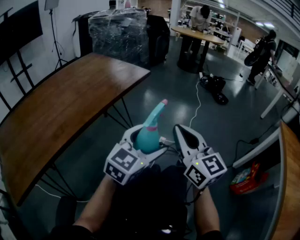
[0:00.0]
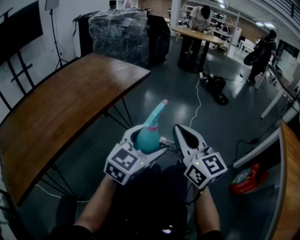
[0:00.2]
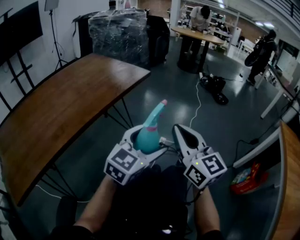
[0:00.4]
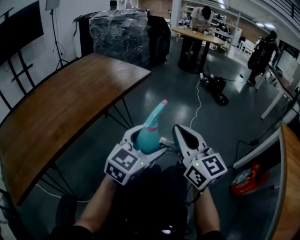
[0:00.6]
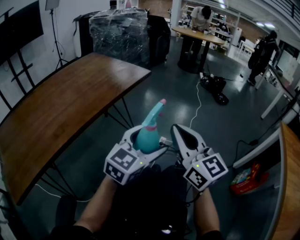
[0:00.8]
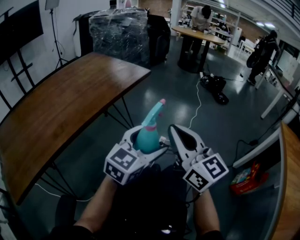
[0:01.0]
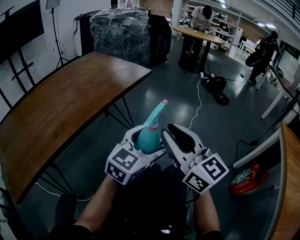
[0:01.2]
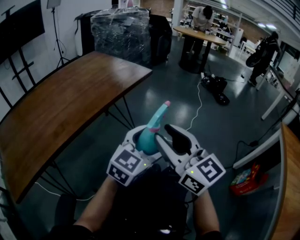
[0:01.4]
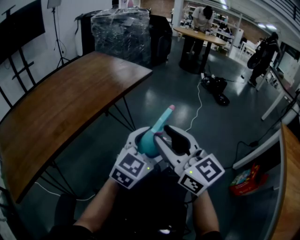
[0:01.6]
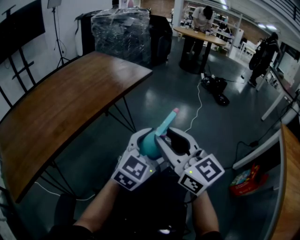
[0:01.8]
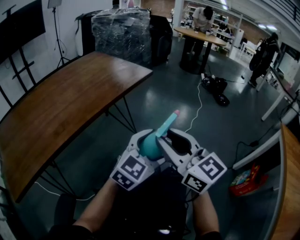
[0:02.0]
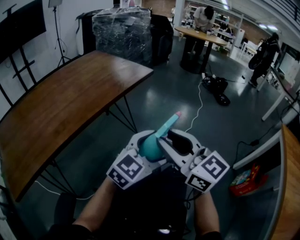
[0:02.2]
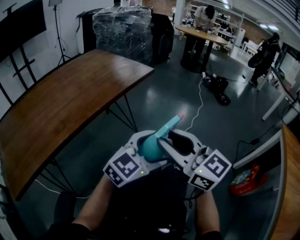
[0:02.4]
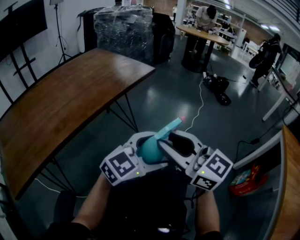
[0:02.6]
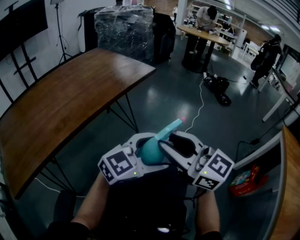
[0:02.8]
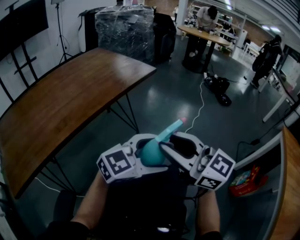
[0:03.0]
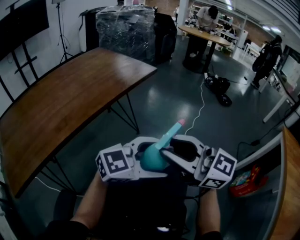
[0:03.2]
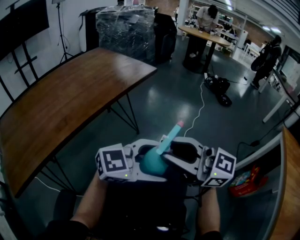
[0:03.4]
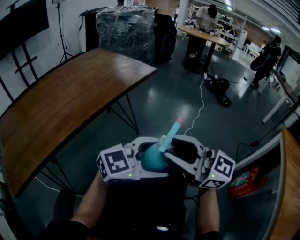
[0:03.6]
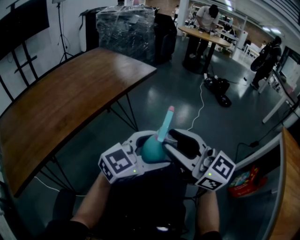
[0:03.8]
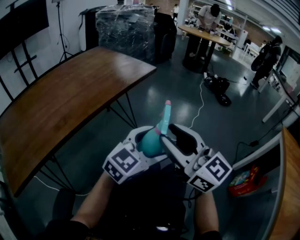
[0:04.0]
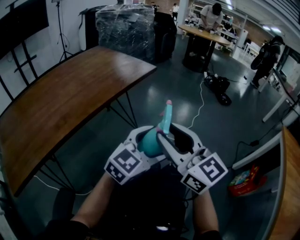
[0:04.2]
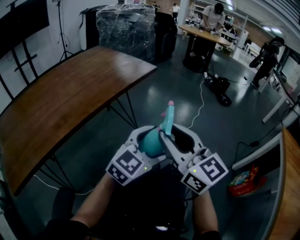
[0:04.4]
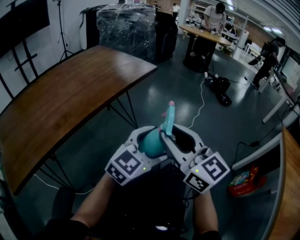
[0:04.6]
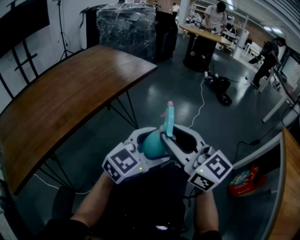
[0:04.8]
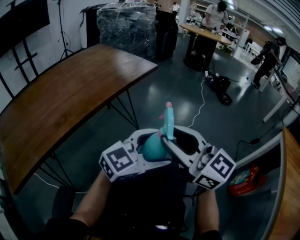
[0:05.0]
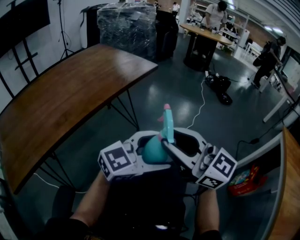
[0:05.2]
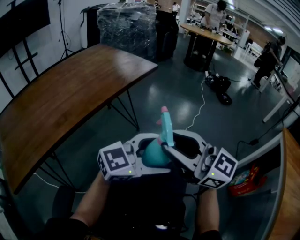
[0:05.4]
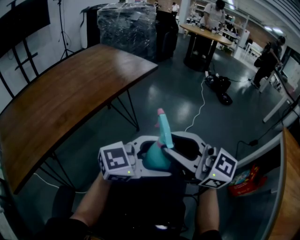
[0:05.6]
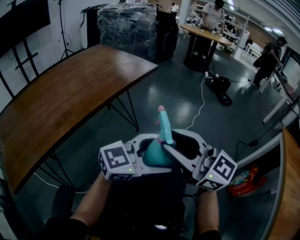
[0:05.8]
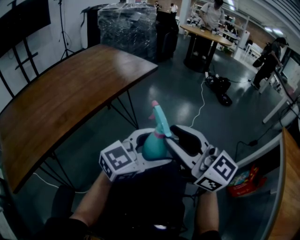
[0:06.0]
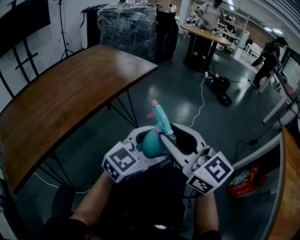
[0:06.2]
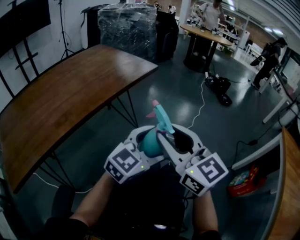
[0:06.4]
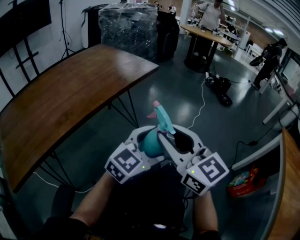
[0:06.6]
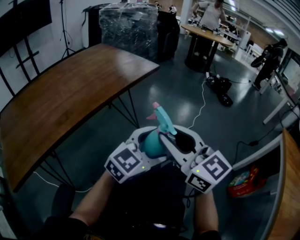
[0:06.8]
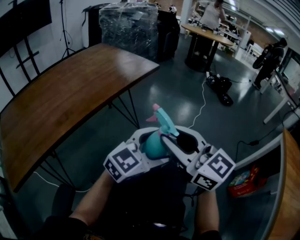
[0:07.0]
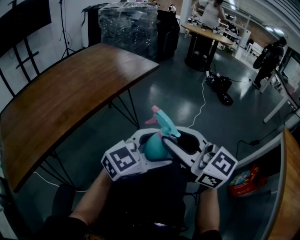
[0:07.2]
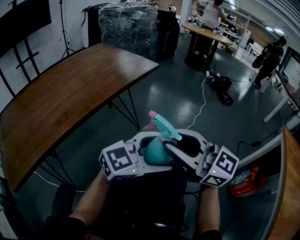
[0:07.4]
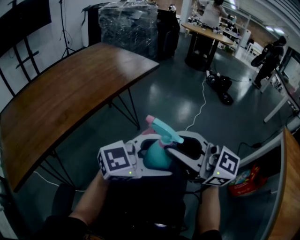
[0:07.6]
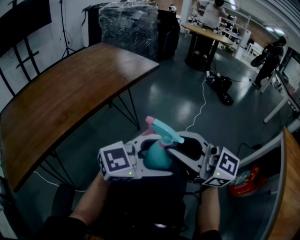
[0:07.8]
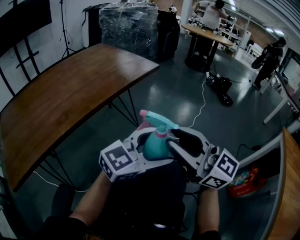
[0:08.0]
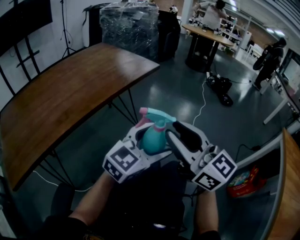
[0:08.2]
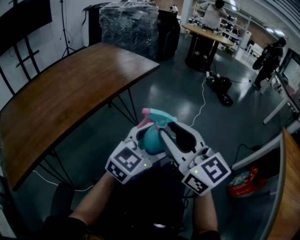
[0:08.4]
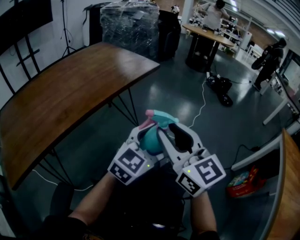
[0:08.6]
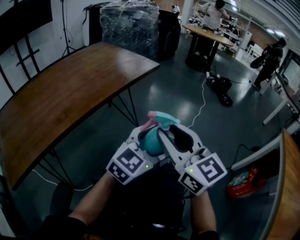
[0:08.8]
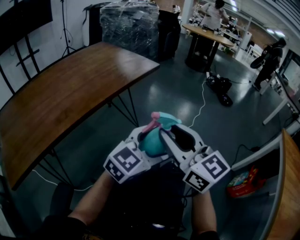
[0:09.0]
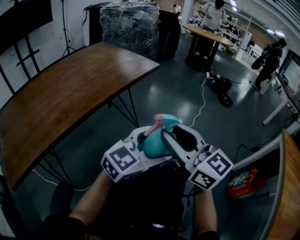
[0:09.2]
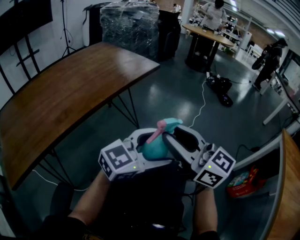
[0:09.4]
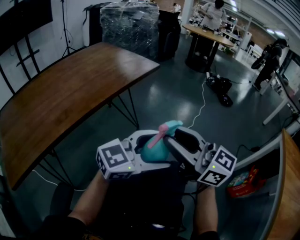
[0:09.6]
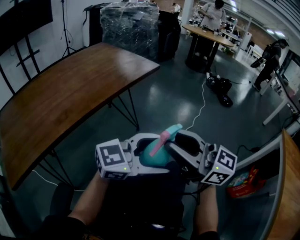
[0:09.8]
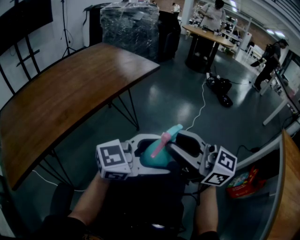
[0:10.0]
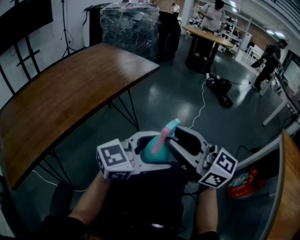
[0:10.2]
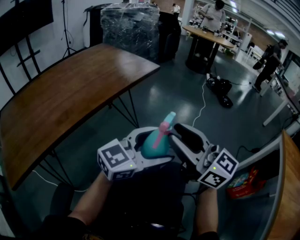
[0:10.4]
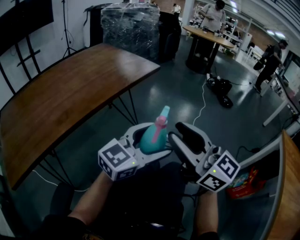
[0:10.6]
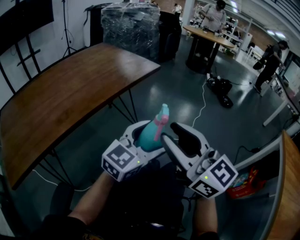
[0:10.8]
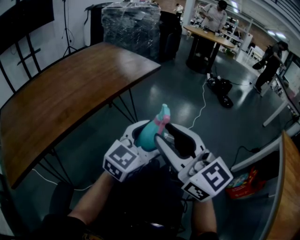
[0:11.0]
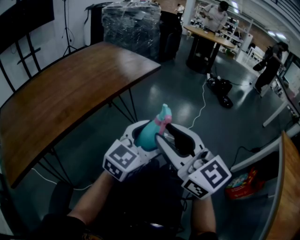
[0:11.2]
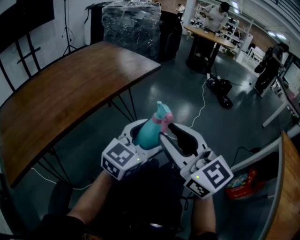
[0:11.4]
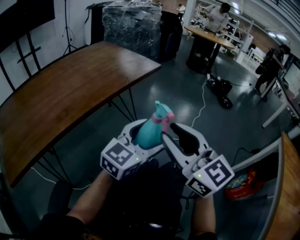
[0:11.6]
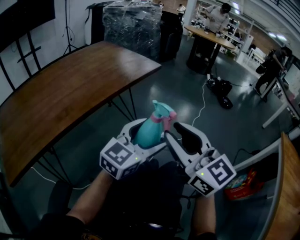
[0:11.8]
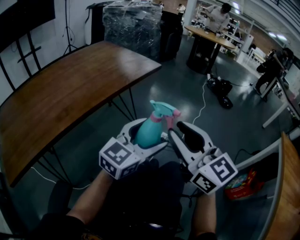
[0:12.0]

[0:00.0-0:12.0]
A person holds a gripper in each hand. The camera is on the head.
0:00.0 to 0:01.6: The right gripper is displaced to the left by some 5 cm, and opens its fingers.
0:01.6 to 0:03.0: The left gripper goes approximately 5 cm backward, and turns by some 30 degrees.
0:03.0 to 0:04.4: The grippers make only small movements.
0:06.0 to 0:07.6: The grippers move only a little.
0:07.6 to 0:09.0: The right gripper changes place by some 5 cm, and turns by some 30 degrees, while the left gripper ends up roughly 5 cm from where it was, and turns by approximately 30 degrees.
0:10.4 to 0:12.0: The left gripper moves roughly 5 cm.

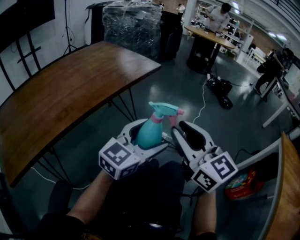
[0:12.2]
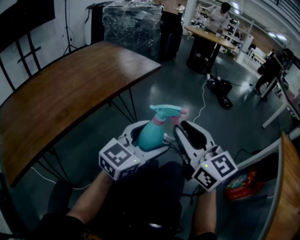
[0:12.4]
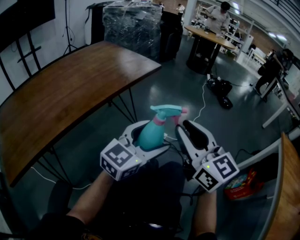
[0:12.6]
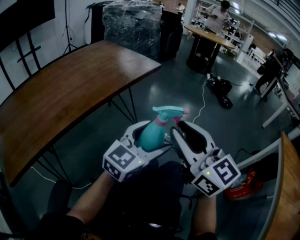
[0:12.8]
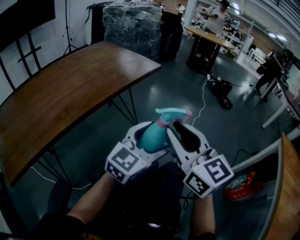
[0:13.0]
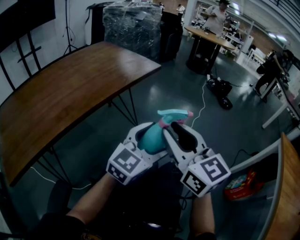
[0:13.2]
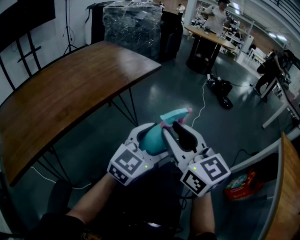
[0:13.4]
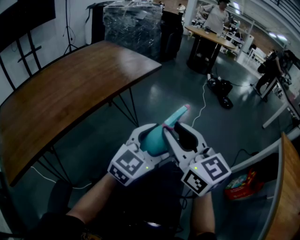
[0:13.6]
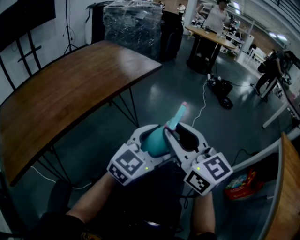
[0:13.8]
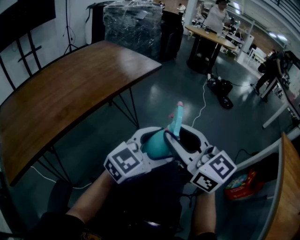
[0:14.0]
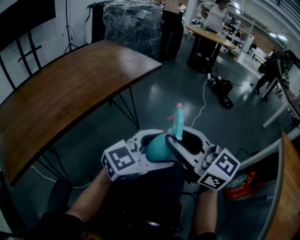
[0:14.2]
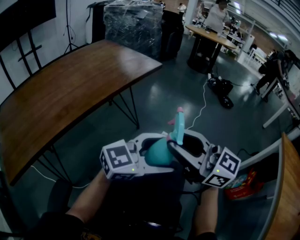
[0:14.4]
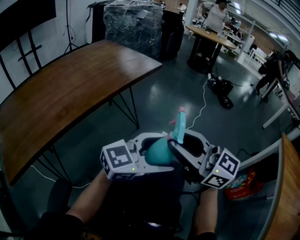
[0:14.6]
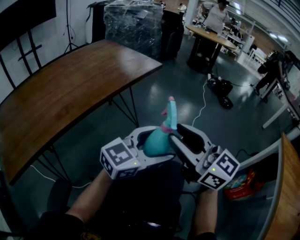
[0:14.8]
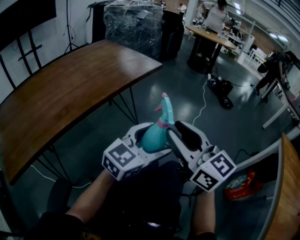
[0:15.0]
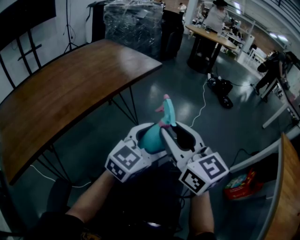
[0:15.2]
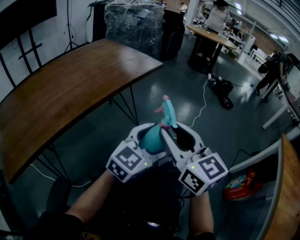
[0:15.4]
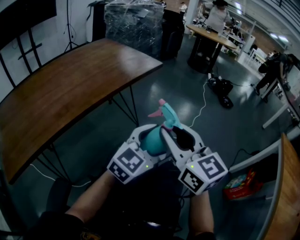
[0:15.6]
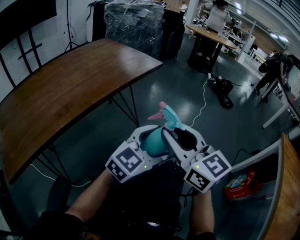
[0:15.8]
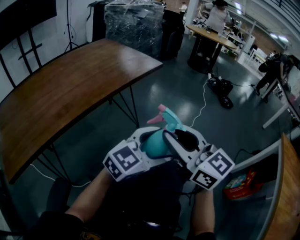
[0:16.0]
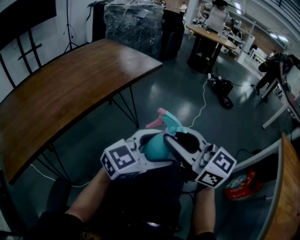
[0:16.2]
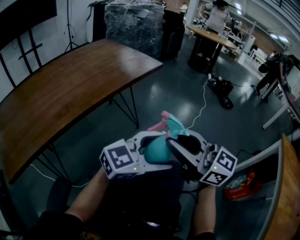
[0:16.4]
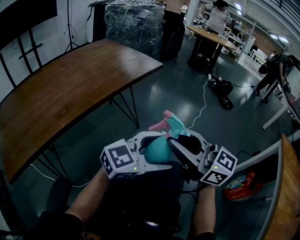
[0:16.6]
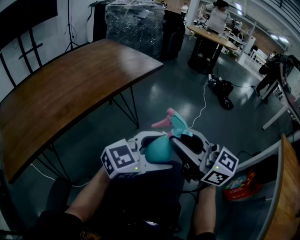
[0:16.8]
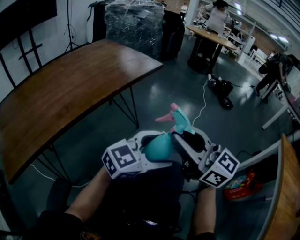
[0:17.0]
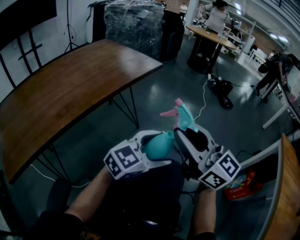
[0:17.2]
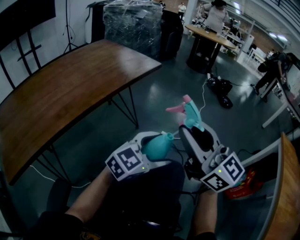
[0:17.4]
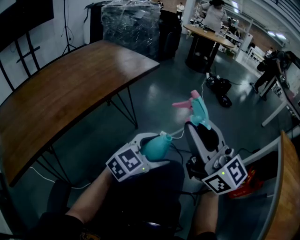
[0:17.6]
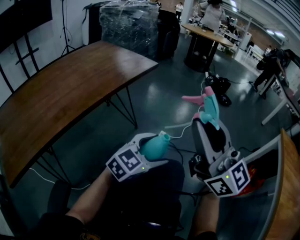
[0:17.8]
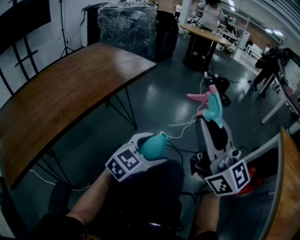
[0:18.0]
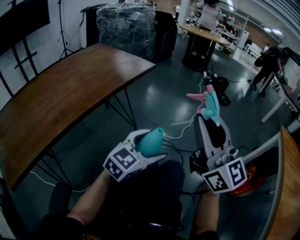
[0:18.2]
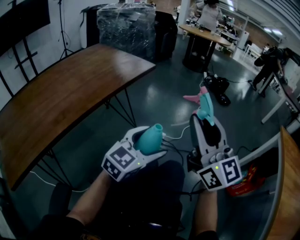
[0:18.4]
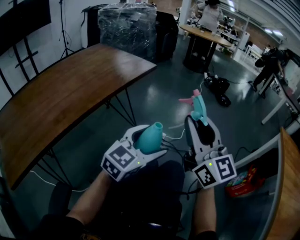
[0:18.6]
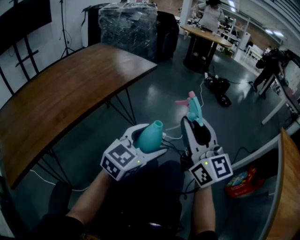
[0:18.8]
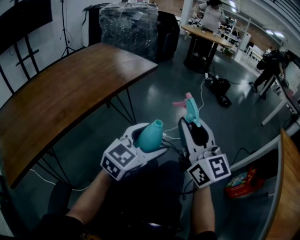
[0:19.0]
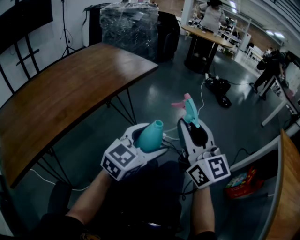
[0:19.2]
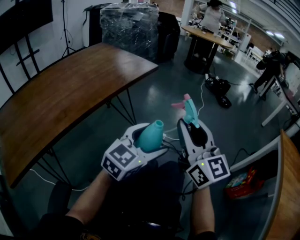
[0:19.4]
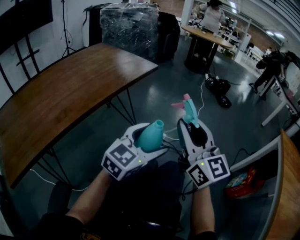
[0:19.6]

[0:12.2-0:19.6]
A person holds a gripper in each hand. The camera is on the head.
0:12.2 to 0:13.6: The grippers make only small movements.
0:15.2 to 0:16.6: The right gripper rotates approximately 30 degrees, while the left gripper shifts by some 5 cm, and changes its angle by roughly 20 degrees.
0:16.6 to 0:18.2: The left gripper shifts by some 5 cm, while the right gripper moves some 10 cm, and swivels roughly 40 degrees.
0:18.2 to 0:19.6: The right gripper goes roughly 5 cm downward.

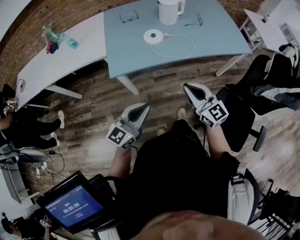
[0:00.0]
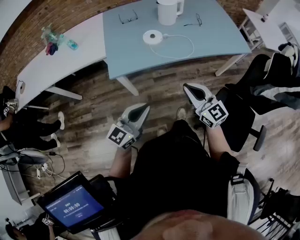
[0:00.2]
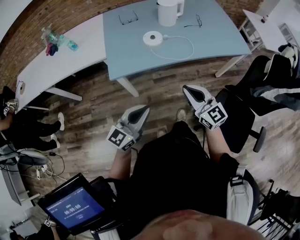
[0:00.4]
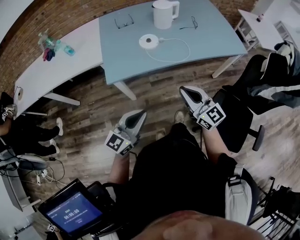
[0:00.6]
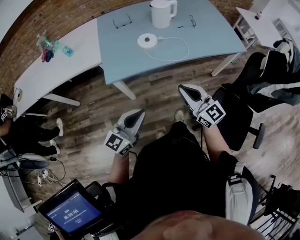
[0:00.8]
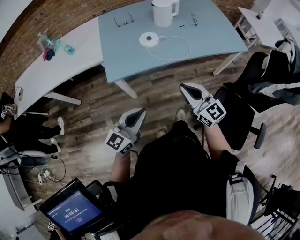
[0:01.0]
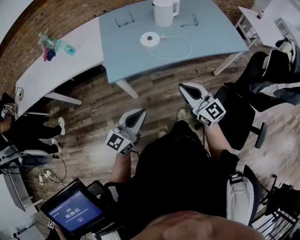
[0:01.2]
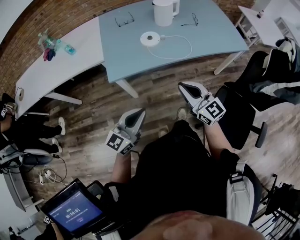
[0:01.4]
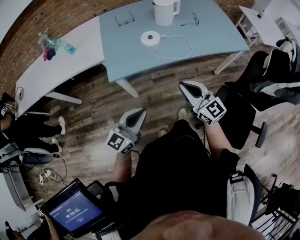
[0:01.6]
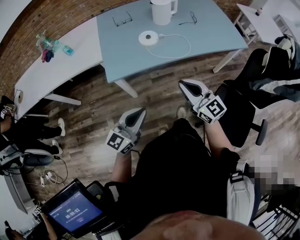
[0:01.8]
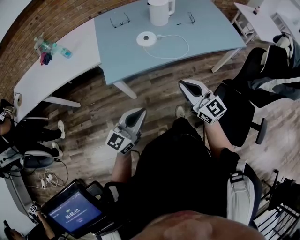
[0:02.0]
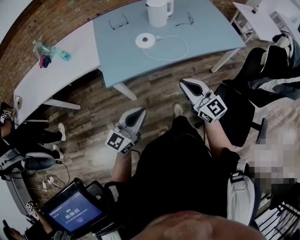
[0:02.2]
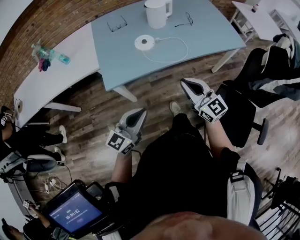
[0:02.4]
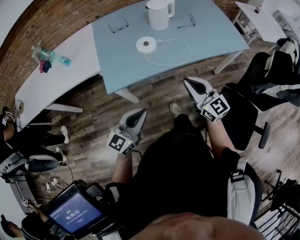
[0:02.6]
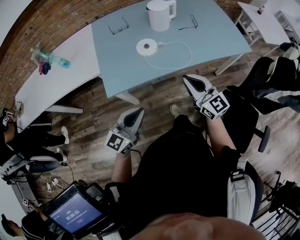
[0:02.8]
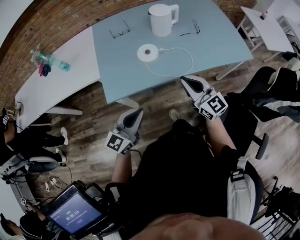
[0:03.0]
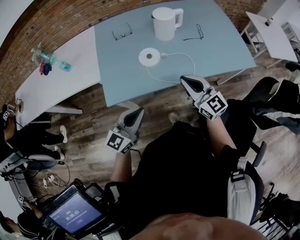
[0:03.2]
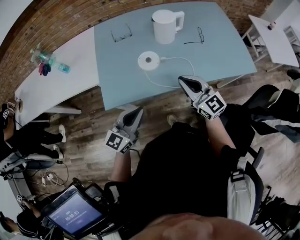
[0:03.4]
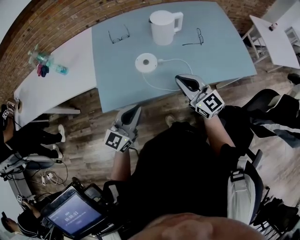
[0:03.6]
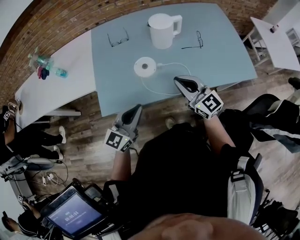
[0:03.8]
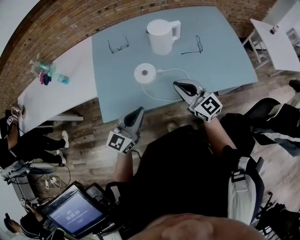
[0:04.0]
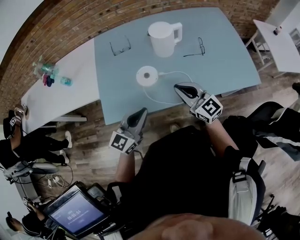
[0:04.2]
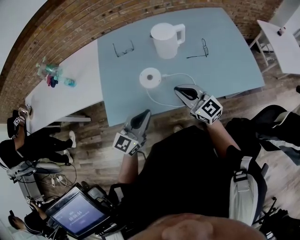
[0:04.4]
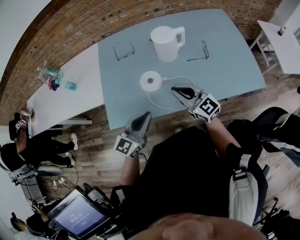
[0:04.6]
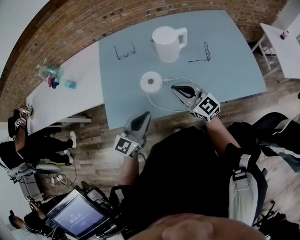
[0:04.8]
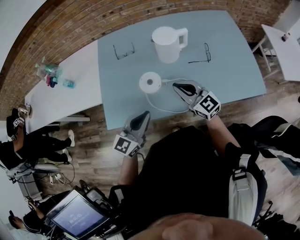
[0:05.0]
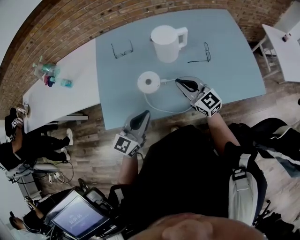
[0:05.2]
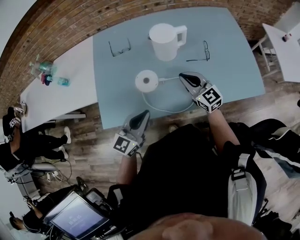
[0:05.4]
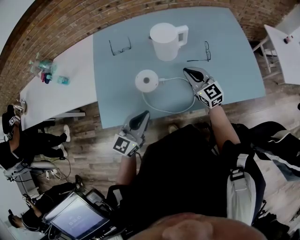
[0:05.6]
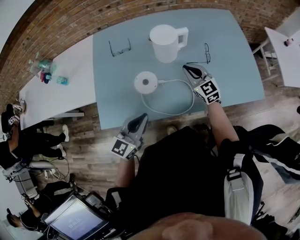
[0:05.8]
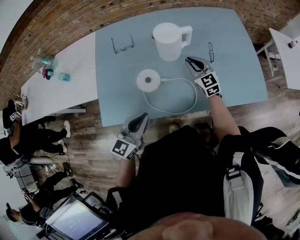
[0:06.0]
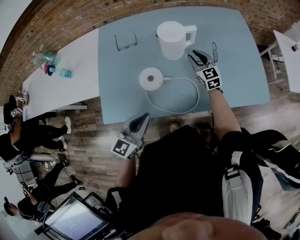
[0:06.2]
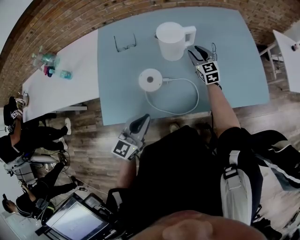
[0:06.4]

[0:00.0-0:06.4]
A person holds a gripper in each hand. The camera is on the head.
0:00.0 to 0:01.6: There are only small adjustments of the grippers.
0:01.6 to 0:03.2: Both grippers move forward, roughly 20 cm.
0:03.2 to 0:04.8: The right gripper travels forward by some 15 cm. Meanwhile the left gripper heads forward and to the right, covering about 15 cm.
0:04.8 to 0:06.4: The right gripper is displaced forward, downward and to the right by roughly 30 cm, changes its angle by approximately 30 degrees, and opens.
